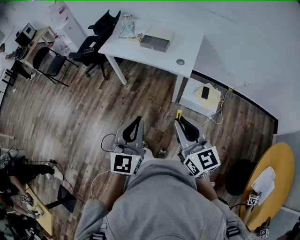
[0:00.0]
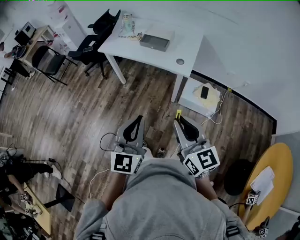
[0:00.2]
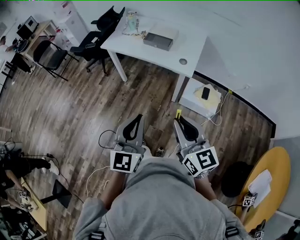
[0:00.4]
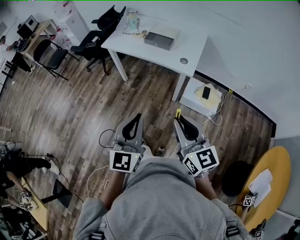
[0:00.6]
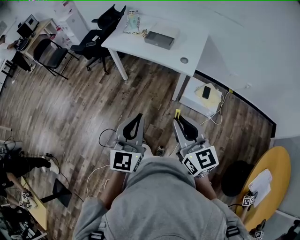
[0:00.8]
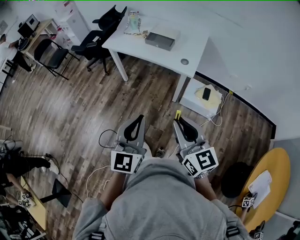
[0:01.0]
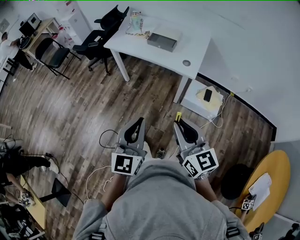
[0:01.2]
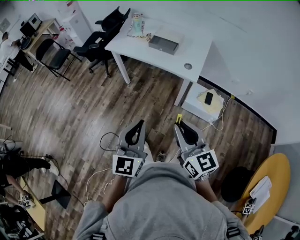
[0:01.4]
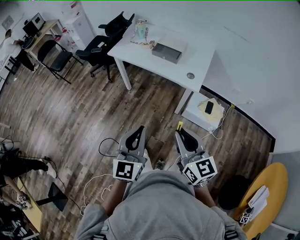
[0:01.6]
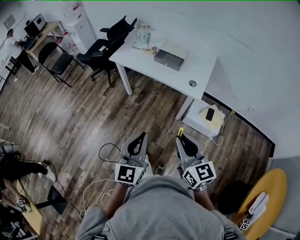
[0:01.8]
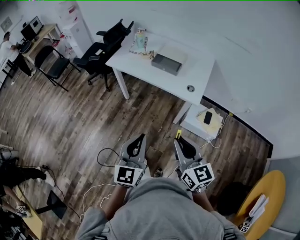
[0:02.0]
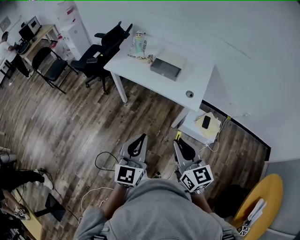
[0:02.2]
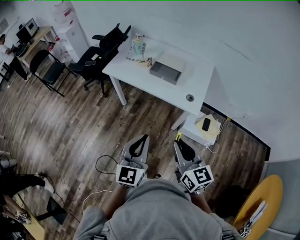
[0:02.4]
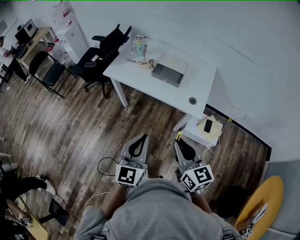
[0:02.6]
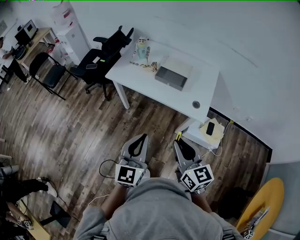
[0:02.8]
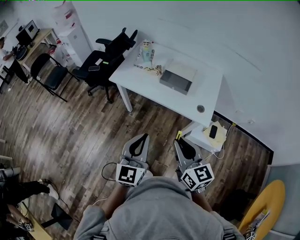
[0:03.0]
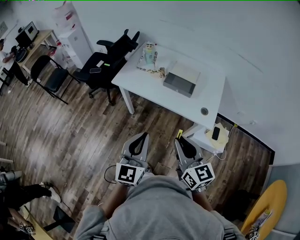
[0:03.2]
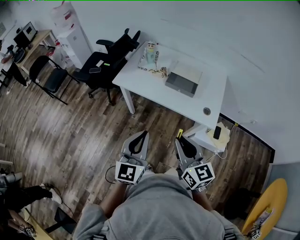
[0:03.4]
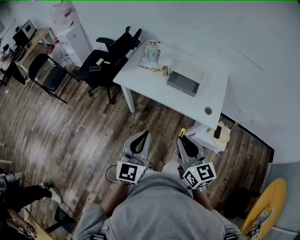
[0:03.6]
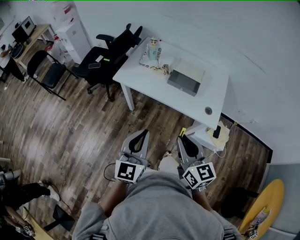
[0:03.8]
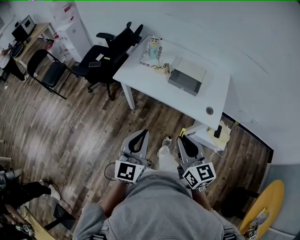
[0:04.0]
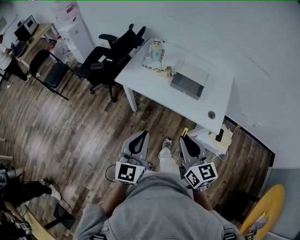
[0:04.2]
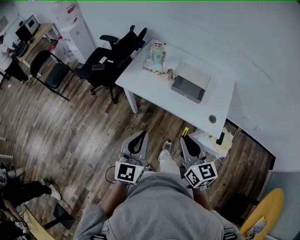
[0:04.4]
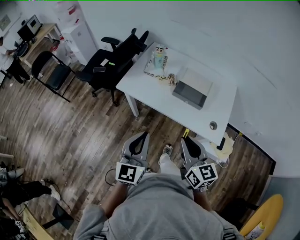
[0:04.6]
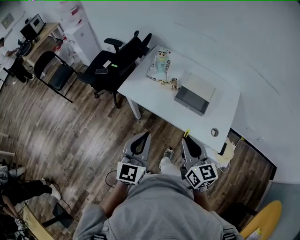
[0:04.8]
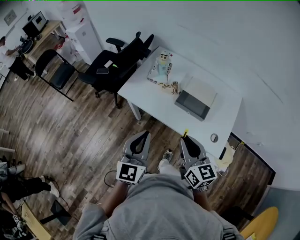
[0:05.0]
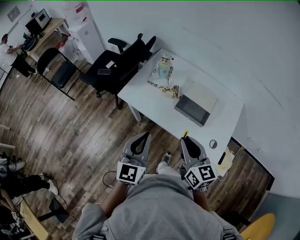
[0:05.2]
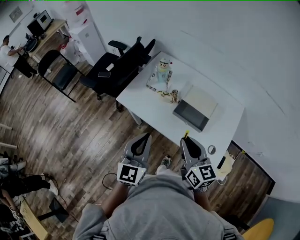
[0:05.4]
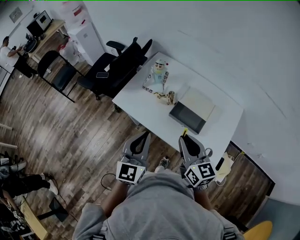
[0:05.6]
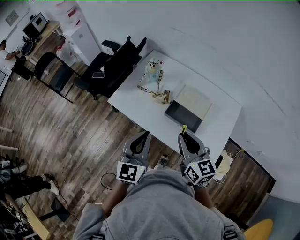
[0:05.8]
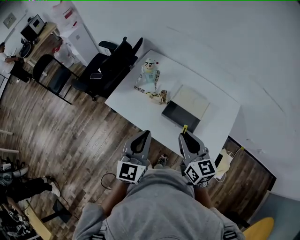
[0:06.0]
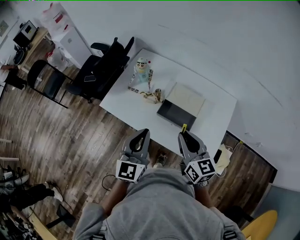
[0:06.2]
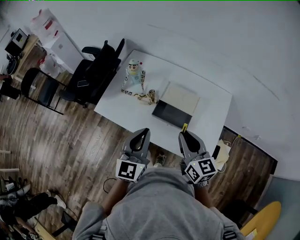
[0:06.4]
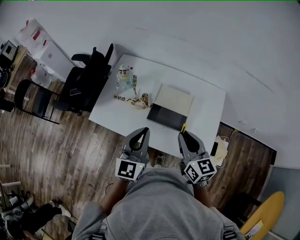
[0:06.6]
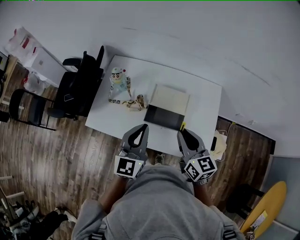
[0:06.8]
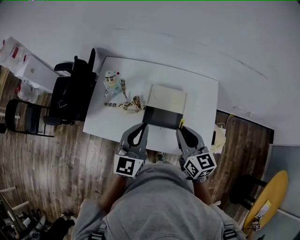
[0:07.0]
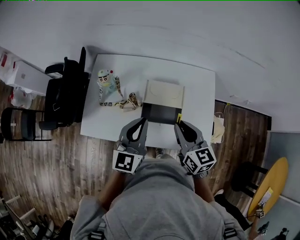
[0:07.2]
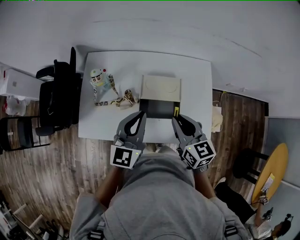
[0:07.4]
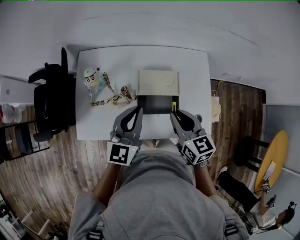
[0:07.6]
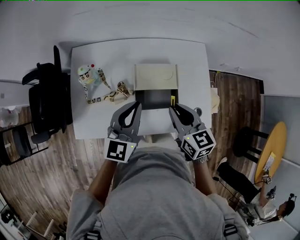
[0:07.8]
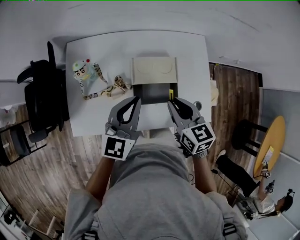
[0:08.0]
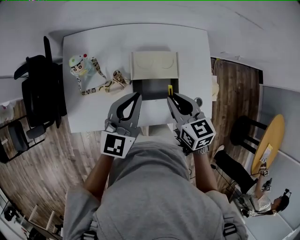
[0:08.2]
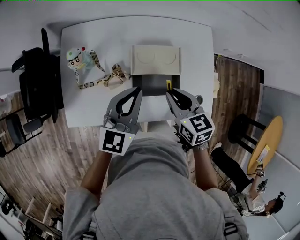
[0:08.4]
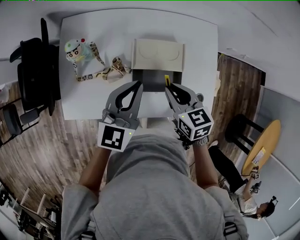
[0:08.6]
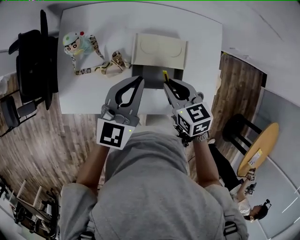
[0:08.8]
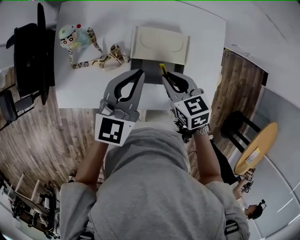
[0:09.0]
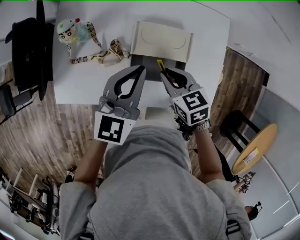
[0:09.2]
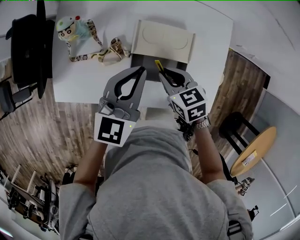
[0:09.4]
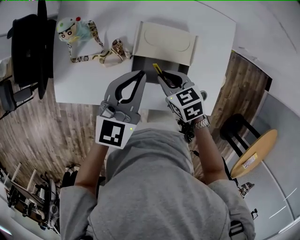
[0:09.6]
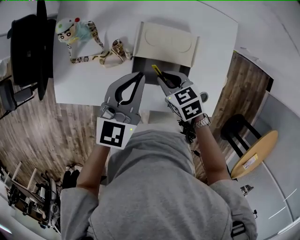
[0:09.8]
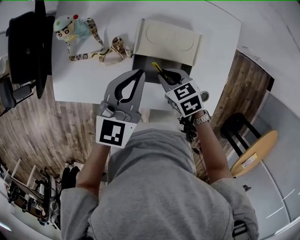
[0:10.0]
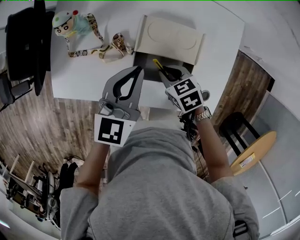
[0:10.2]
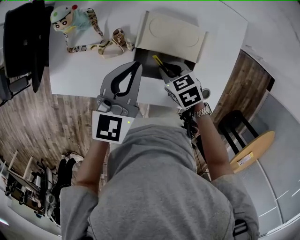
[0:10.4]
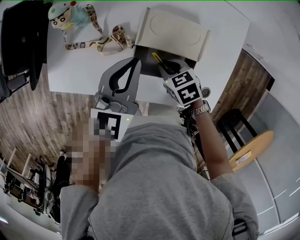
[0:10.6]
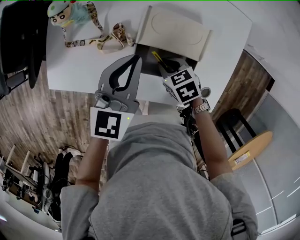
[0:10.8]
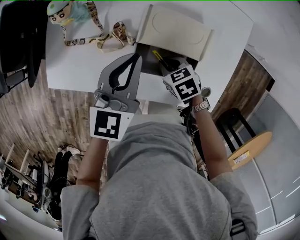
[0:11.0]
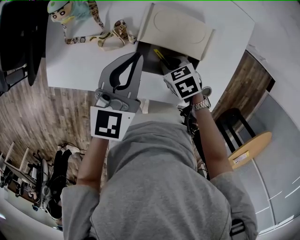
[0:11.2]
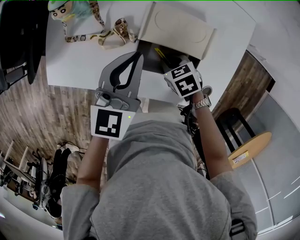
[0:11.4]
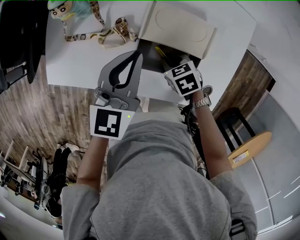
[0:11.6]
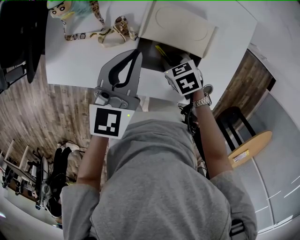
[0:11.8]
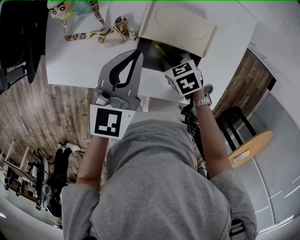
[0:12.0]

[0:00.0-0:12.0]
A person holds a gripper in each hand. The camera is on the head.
0:00.0 to 0:01.6: The left gripper ends up roughly 5 cm from where it was. The right gripper ends up about 5 cm from where it was.
0:01.6 to 0:03.0: Both grippers move forward, some 25 cm.
0:03.0 to 0:04.4: The left gripper shifts approximately 15 cm forward and to the left. The right gripper goes approximately 10 cm forward.
0:04.4 to 0:06.0: Both grippers move forward and to the right, roughly 25 cm.
0:06.0 to 0:07.6: The left gripper changes place by some 20 cm, and changes its angle by approximately 40 degrees. The right gripper shifts by roughly 10 cm, and changes its angle by about 30 degrees.
0:07.6 to 0:09.0: The left gripper travels downward by roughly 5 cm; the right gripper moves downward, some 10 cm, and changes its angle by approximately 30 degrees.
0:09.0 to 0:10.4: The left gripper goes about 5 cm downward, while the right gripper shifts roughly 15 cm downward, and changes its angle by about 20 degrees.
0:10.4 to 0:12.0: The grippers make only small movements.

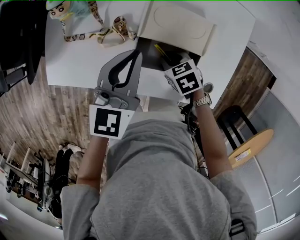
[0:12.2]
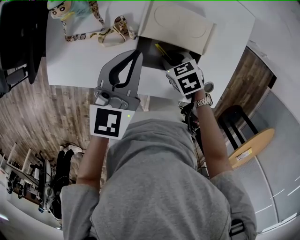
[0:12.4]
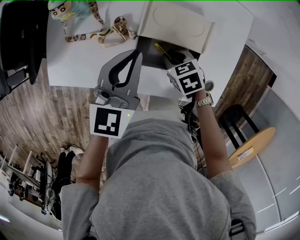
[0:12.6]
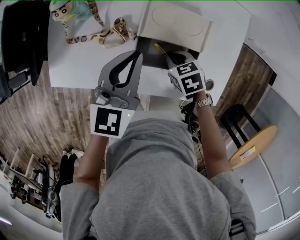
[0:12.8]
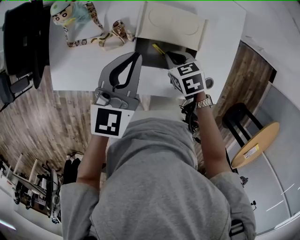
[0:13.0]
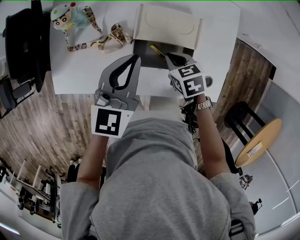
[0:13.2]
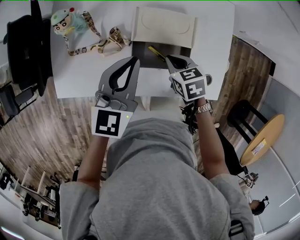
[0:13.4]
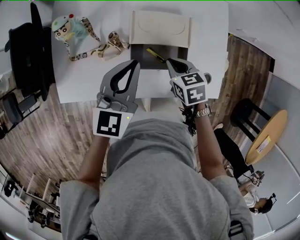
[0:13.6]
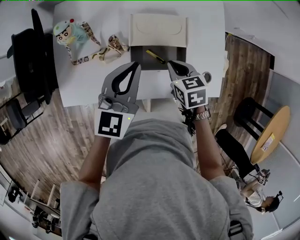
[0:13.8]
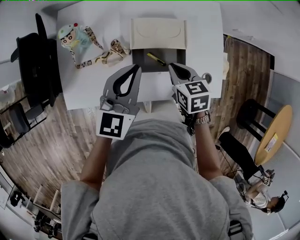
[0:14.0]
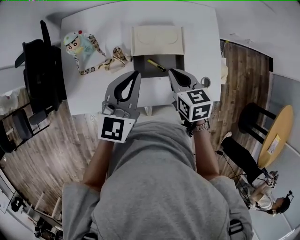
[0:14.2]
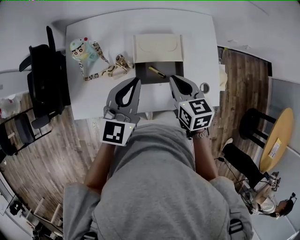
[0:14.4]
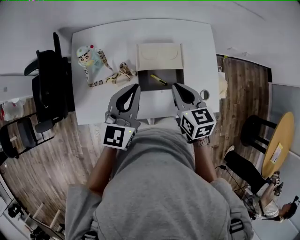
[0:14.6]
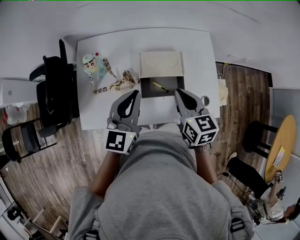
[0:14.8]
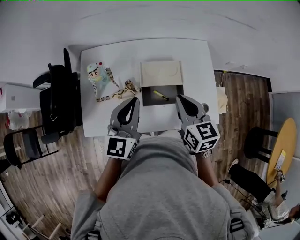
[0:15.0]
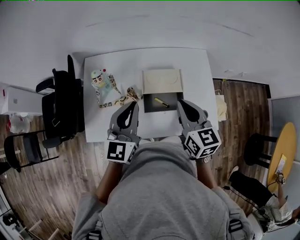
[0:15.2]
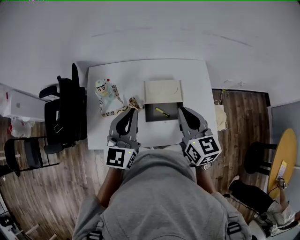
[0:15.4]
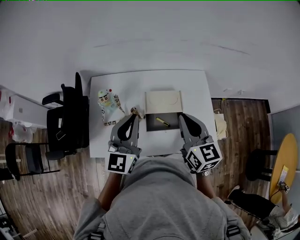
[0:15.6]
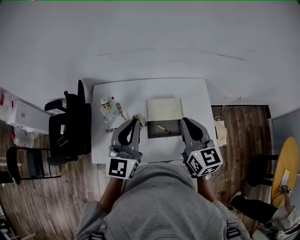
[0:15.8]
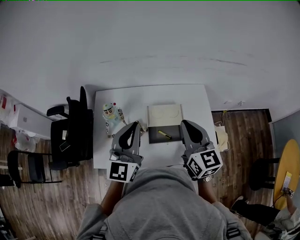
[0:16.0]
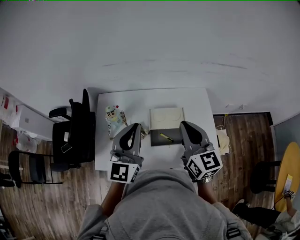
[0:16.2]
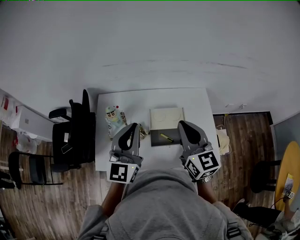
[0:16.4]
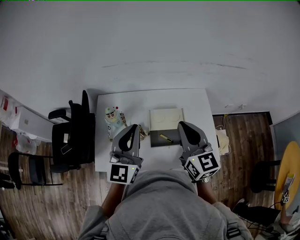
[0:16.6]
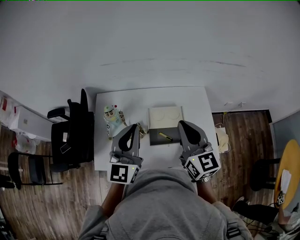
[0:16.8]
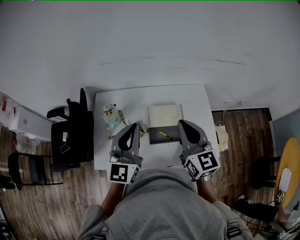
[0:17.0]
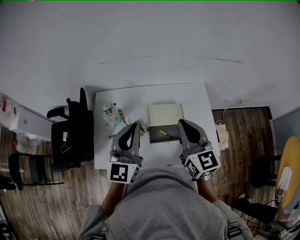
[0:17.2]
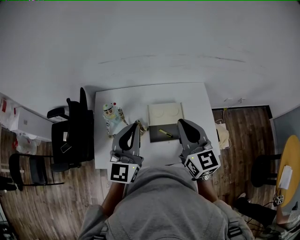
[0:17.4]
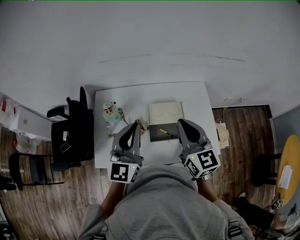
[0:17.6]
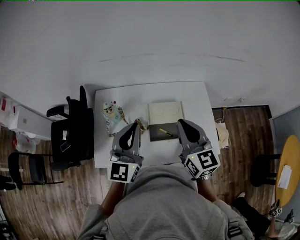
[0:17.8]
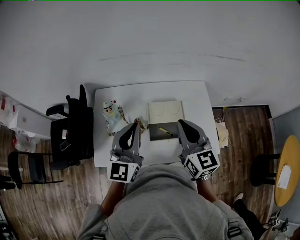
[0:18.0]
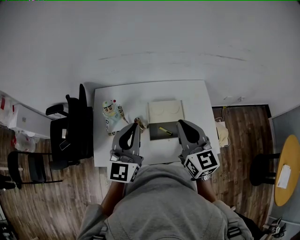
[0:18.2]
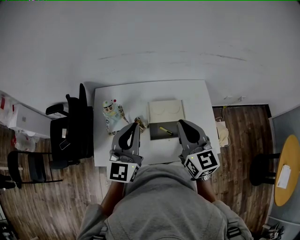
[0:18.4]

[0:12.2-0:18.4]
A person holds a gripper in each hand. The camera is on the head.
0:12.2 to 0:13.8: The left gripper is displaced upward by about 5 cm. The right gripper moves upward, some 10 cm, and turns by approximately 30 degrees.
0:13.8 to 0:15.4: The right gripper heads upward, covering roughly 25 cm, and points its fingers about 40 degrees further upward; the left gripper heads upward and to the left, covering about 15 cm.
0:15.4 to 0:16.8: The grippers both shift upward by about 5 cm.
0:16.8 to 0:18.4: The grippers make only small movements.

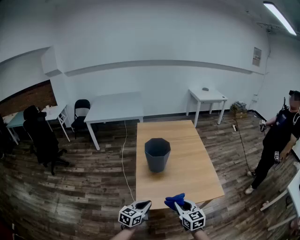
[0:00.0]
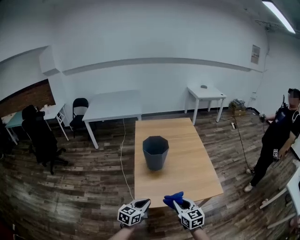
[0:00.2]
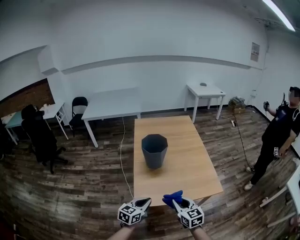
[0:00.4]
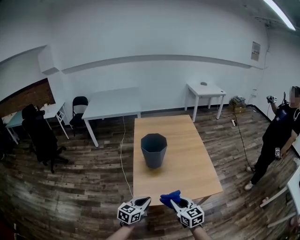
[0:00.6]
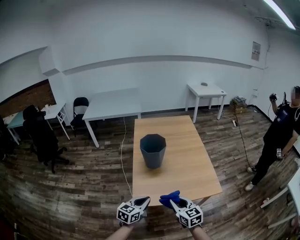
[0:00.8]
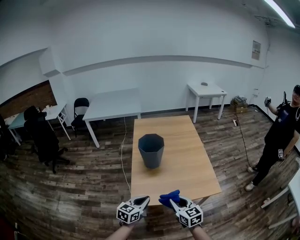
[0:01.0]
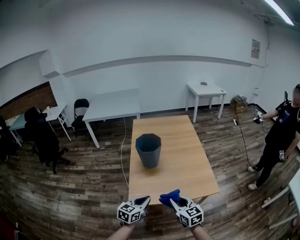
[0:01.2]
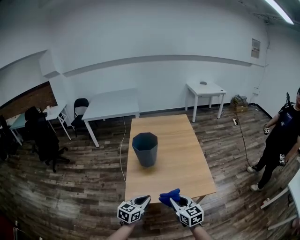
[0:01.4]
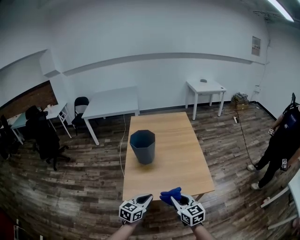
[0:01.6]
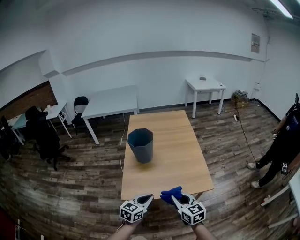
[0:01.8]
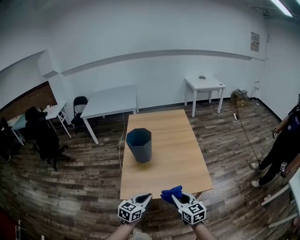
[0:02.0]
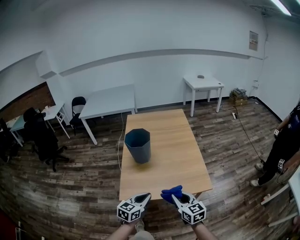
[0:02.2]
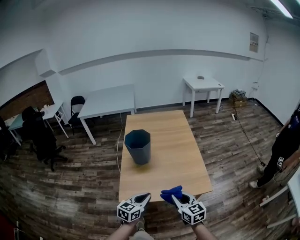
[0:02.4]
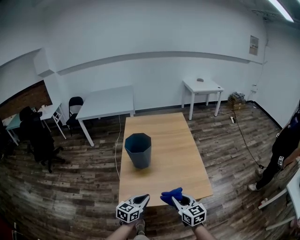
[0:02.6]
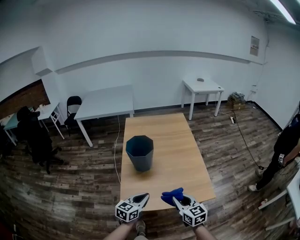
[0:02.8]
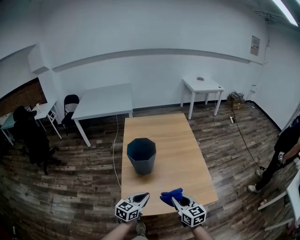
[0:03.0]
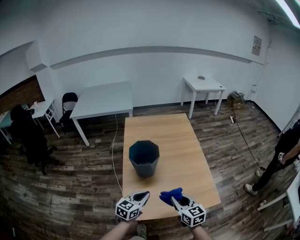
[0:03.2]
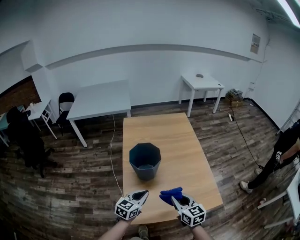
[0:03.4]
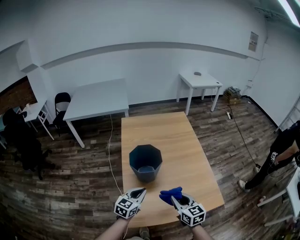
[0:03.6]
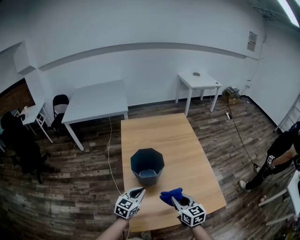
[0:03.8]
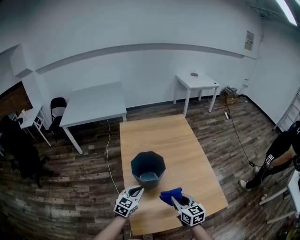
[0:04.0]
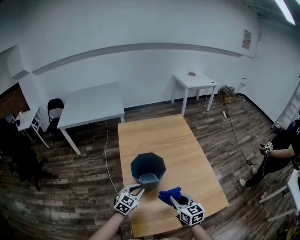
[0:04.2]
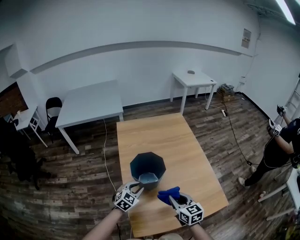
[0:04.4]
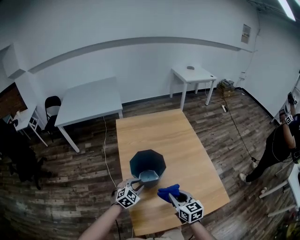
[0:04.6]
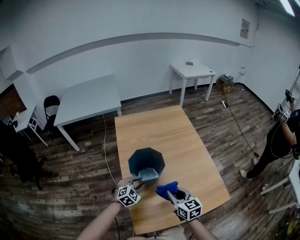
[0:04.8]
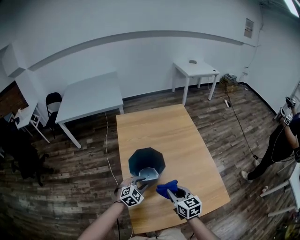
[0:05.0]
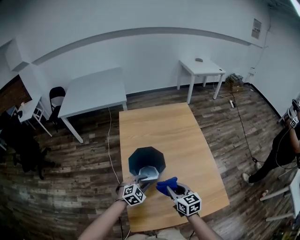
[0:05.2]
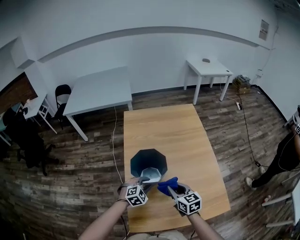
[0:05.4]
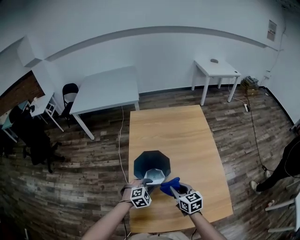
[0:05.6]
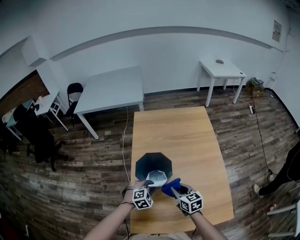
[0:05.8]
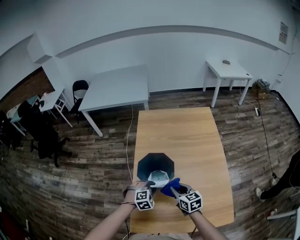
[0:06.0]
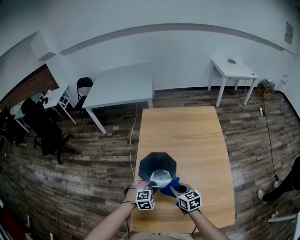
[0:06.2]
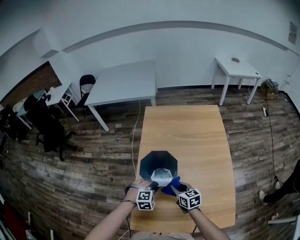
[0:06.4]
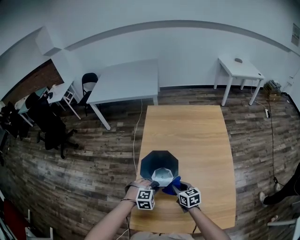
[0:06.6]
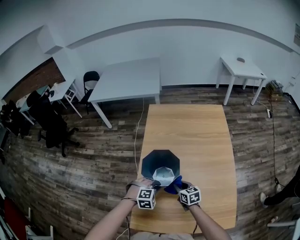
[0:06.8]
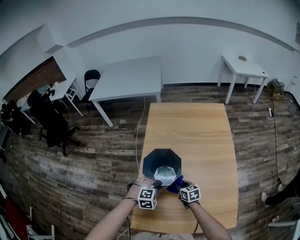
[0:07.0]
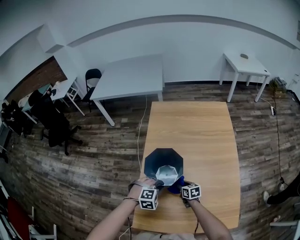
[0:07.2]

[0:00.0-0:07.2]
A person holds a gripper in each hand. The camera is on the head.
0:00.0 to 0:01.4: Both grippers travel together to the right, about 10 cm.
0:01.4 to 0:02.8: Both grippers move forward, approximately 10 cm.
0:02.8 to 0:04.4: The two grippers go about 30 cm forward and to the left. The left gripper rotates some 40 degrees.
0:04.4 to 0:05.8: The right gripper shifts about 15 cm forward and downward, while the left gripper moves to the right and downward, roughly 10 cm, and turns by some 30 degrees.
0:05.8 to 0:07.2: The right gripper shifts roughly 20 cm downward.
